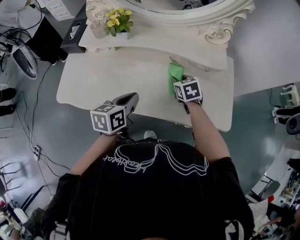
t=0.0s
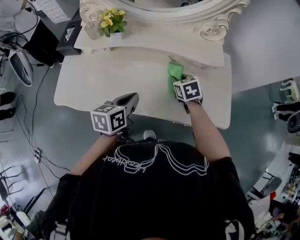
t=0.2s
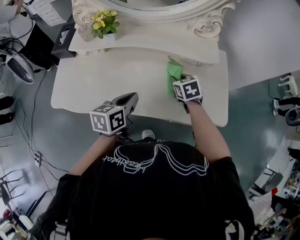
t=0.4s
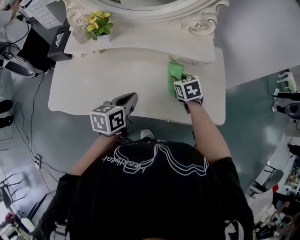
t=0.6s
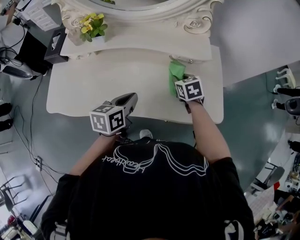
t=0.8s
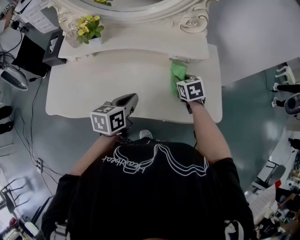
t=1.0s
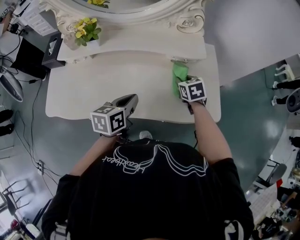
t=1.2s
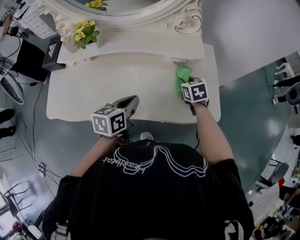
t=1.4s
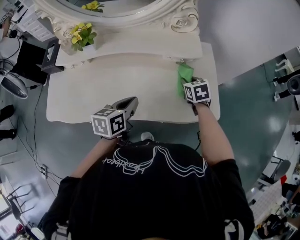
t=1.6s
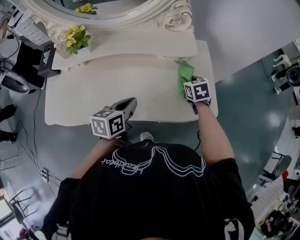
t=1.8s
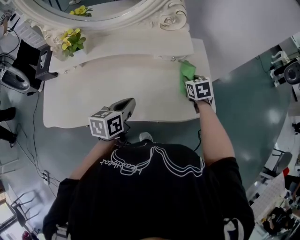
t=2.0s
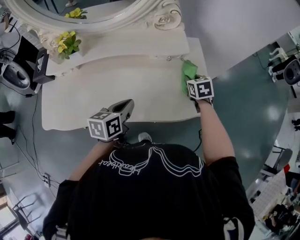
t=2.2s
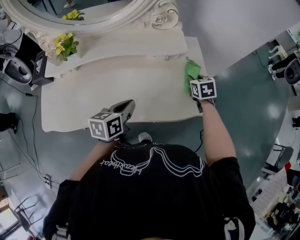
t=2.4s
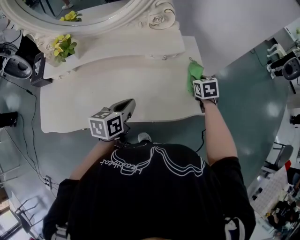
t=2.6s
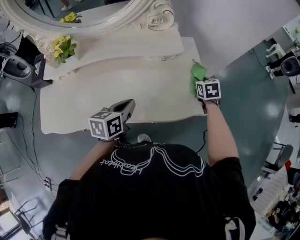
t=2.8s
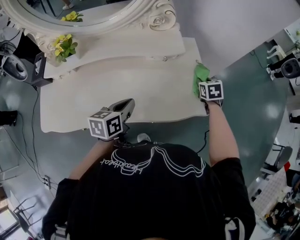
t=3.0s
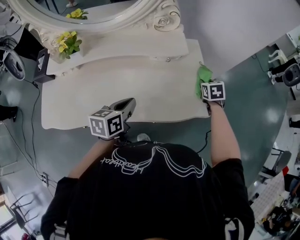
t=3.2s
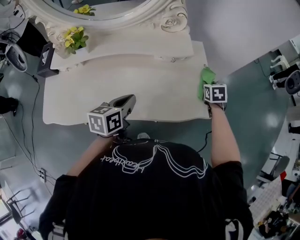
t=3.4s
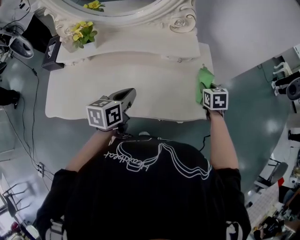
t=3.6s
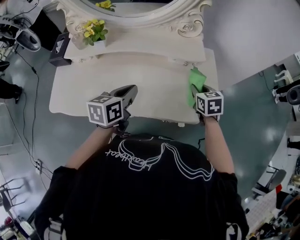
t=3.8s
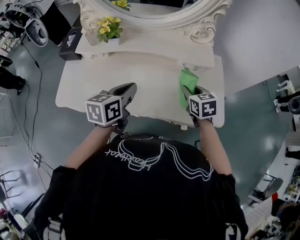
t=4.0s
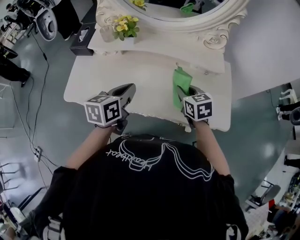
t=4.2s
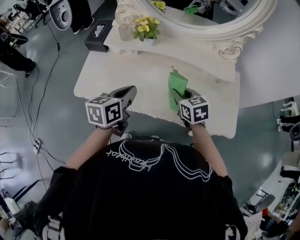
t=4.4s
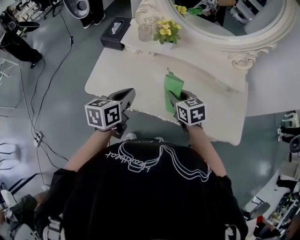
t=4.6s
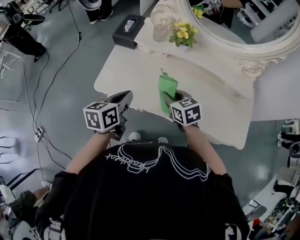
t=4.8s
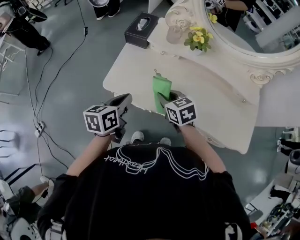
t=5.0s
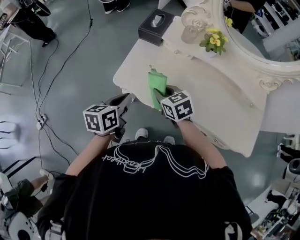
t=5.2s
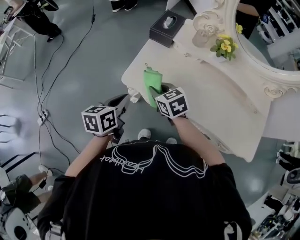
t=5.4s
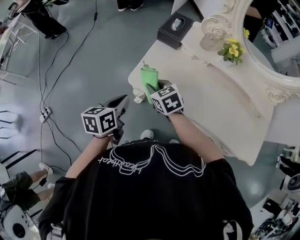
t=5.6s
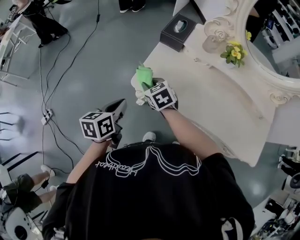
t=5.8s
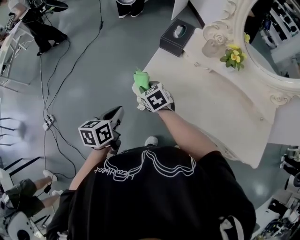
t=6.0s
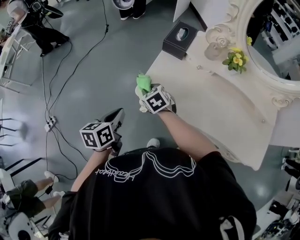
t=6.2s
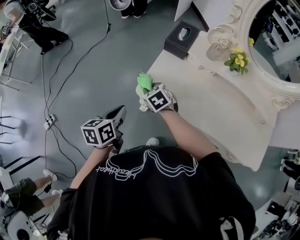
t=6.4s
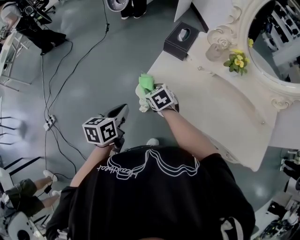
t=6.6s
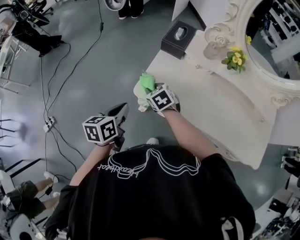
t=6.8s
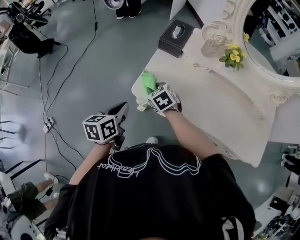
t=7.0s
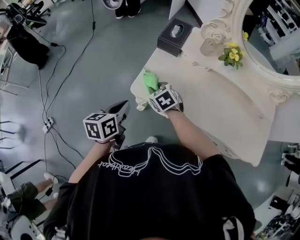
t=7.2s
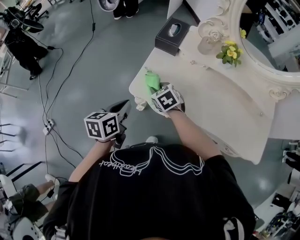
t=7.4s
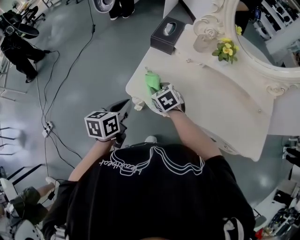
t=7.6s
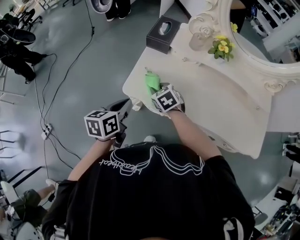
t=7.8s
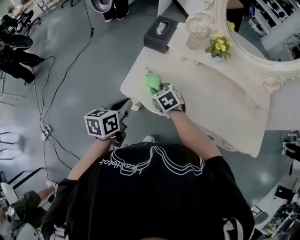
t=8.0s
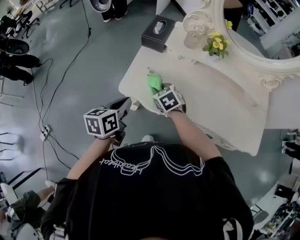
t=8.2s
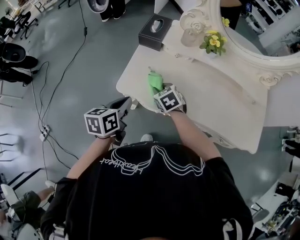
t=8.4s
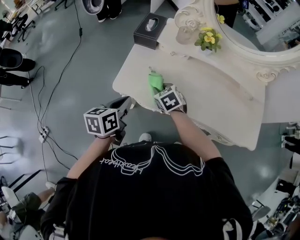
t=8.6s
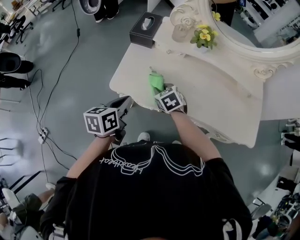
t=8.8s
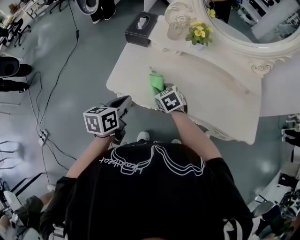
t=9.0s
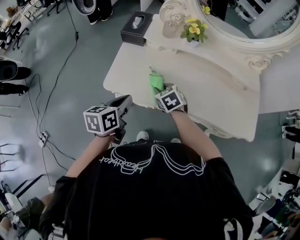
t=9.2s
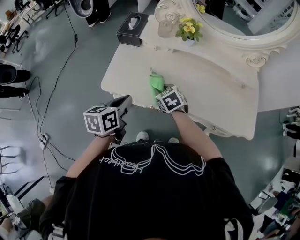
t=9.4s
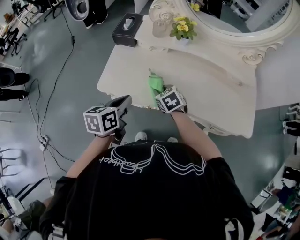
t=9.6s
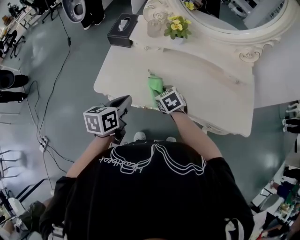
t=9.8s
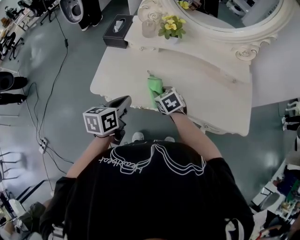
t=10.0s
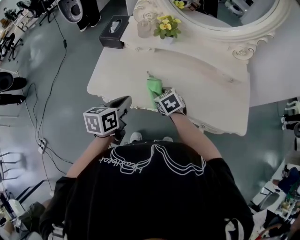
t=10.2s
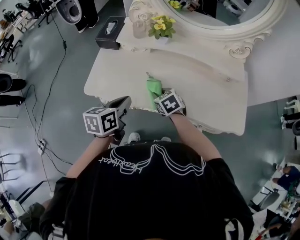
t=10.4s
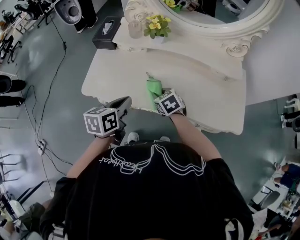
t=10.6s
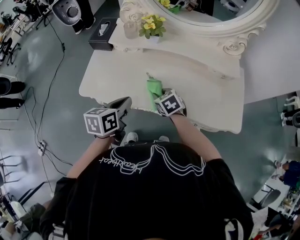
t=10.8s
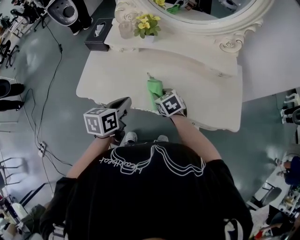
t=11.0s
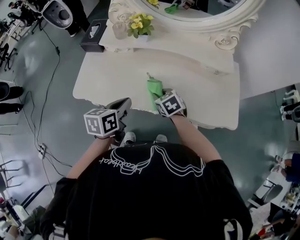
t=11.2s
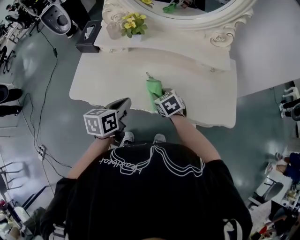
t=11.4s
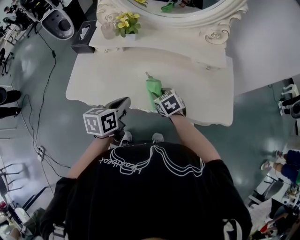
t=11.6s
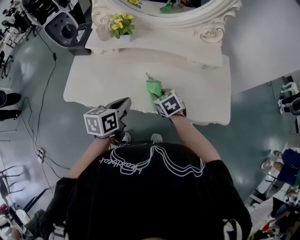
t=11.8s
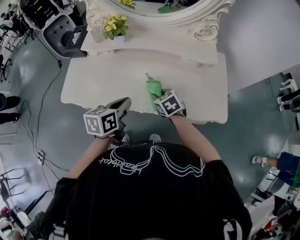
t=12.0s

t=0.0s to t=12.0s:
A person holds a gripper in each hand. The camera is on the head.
t=0.0s to t=1.6s: The left gripper goes some 10 cm to the right, while the right gripper goes about 15 cm to the right.
t=1.6s to t=3.0s: The right gripper is displaced to the right by about 15 cm.
t=3.0s to t=4.4s: The right gripper changes place by roughly 40 cm, and swivels roughly 40 degrees. The left gripper ends up approximately 25 cm from where it was.
t=4.4s to t=6.0s: The right gripper changes place by roughly 50 cm, and turns by roughly 30 degrees. Meanwhile the left gripper ends up some 40 cm from where it was, and swivels some 30 degrees.
t=6.0s to t=7.6s: Both grippers travel together to the right, approximately 5 cm.
t=7.6s to t=9.0s: Both grippers travel together to the right, approximately 10 cm.
t=9.0s to t=10.4s: The two grippers go approximately 15 cm to the right.
t=10.4s to t=12.0s: Both grippers travel together to the right, about 15 cm.

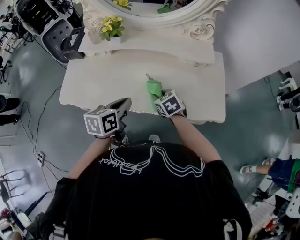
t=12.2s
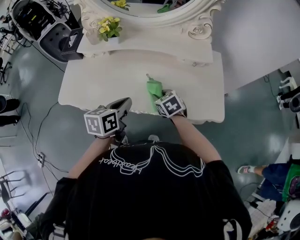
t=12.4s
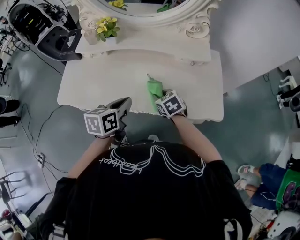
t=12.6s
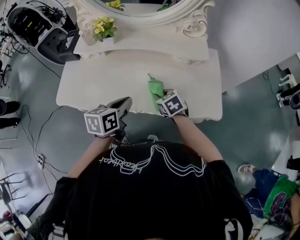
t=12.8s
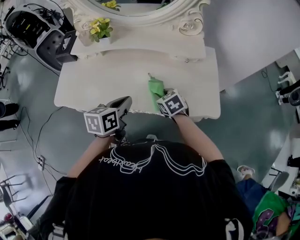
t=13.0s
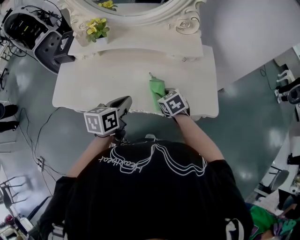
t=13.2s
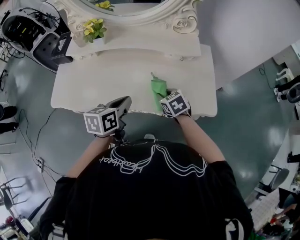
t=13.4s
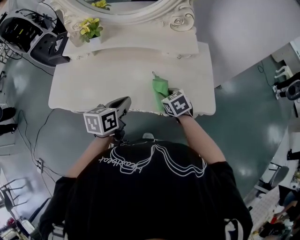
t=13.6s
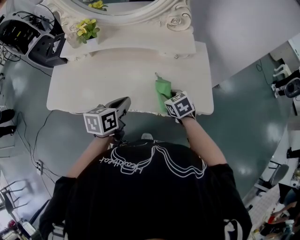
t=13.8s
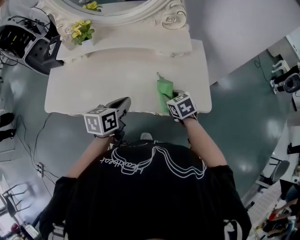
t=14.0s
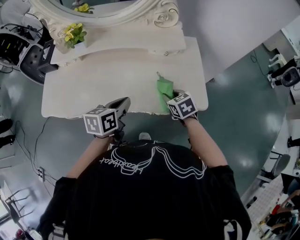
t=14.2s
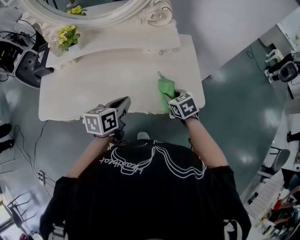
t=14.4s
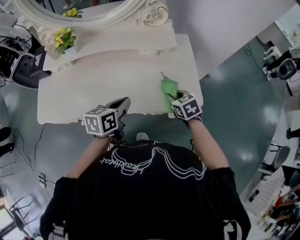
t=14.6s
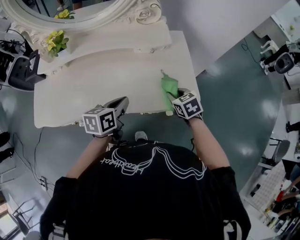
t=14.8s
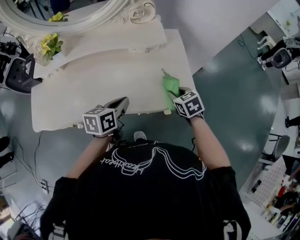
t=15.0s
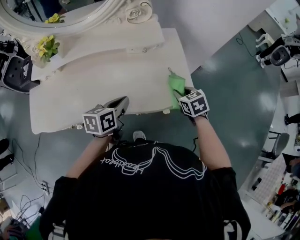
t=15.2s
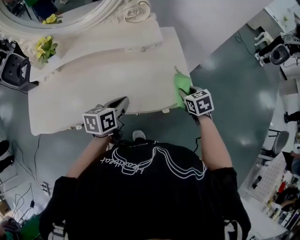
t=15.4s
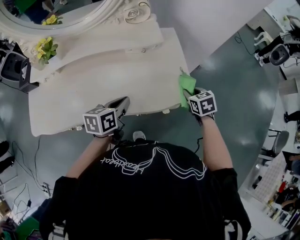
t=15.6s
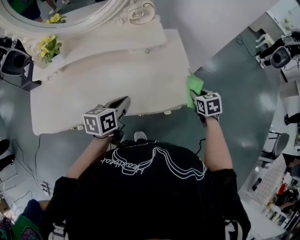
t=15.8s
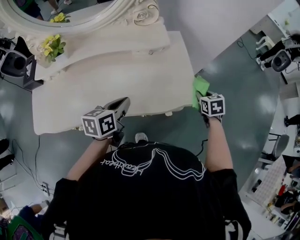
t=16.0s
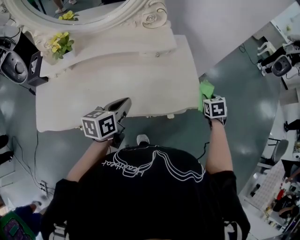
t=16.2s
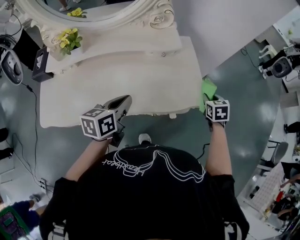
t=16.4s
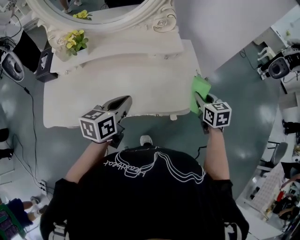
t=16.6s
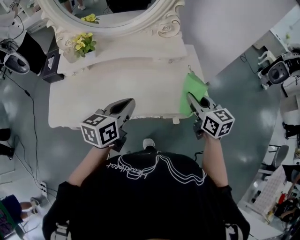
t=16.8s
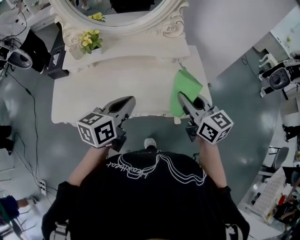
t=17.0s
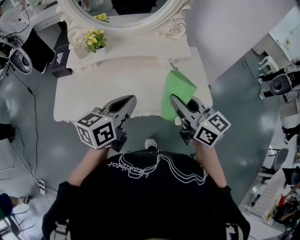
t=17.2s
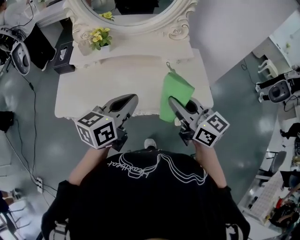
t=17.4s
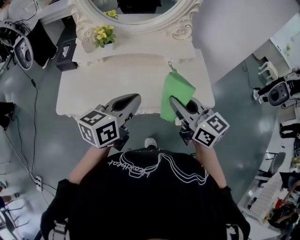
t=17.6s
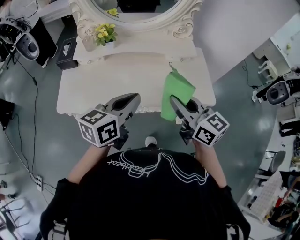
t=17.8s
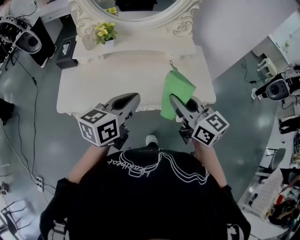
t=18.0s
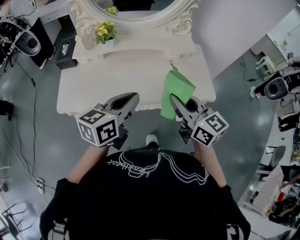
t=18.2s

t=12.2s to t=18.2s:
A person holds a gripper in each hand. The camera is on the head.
t=12.2s to t=13.8s: The left gripper goes some 10 cm to the right, while the right gripper moves to the right, about 15 cm.
t=13.8s to t=15.2s: The left gripper heads to the right, covering about 10 cm. The right gripper moves to the right, about 20 cm.
t=15.2s to t=16.6s: The right gripper is displaced upward by approximately 10 cm, and goes to the right and returns, about 10 cm each way, while the left gripper shifts roughly 10 cm upward and to the left.
t=16.6s to t=18.2s: The right gripper heads to the left, upward and backward, covering some 35 cm, and tips its fingers upward by about 30 degrees. Meanwhile the left gripper heads backward, upward and to the left, covering some 15 cm.

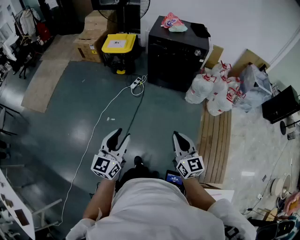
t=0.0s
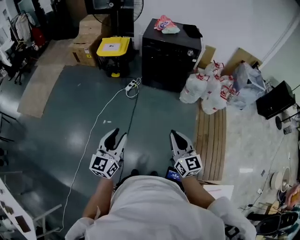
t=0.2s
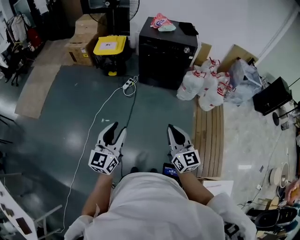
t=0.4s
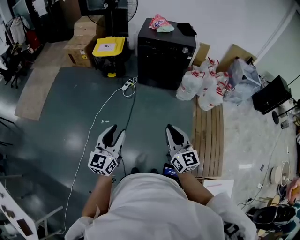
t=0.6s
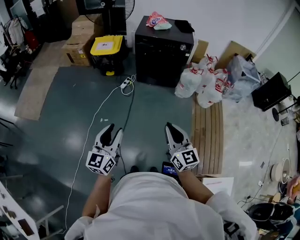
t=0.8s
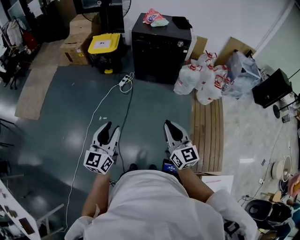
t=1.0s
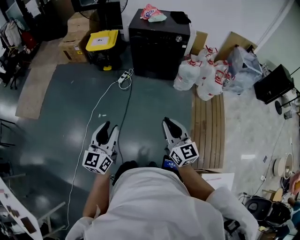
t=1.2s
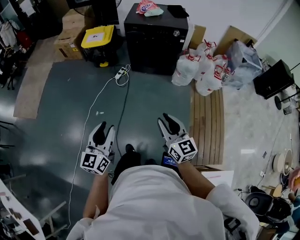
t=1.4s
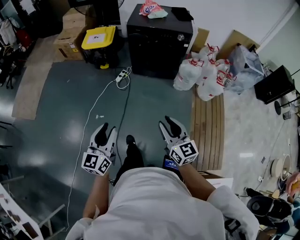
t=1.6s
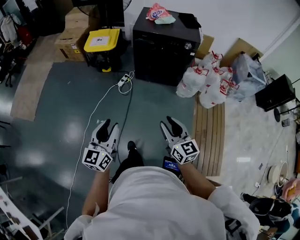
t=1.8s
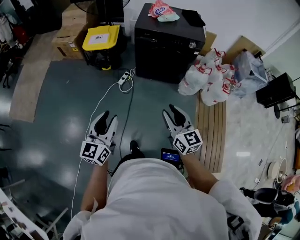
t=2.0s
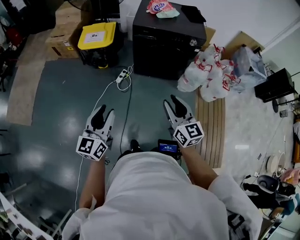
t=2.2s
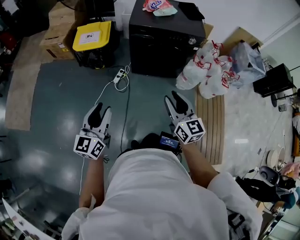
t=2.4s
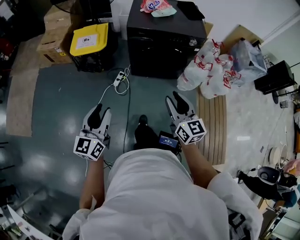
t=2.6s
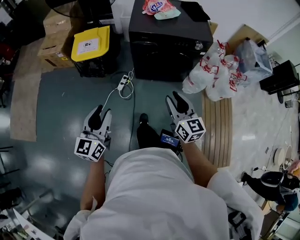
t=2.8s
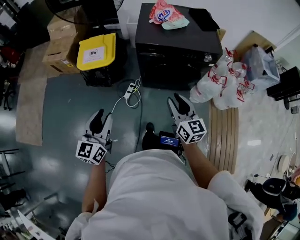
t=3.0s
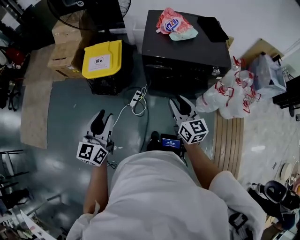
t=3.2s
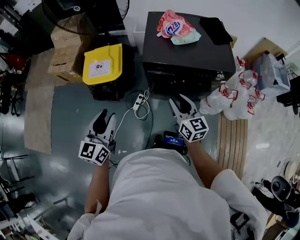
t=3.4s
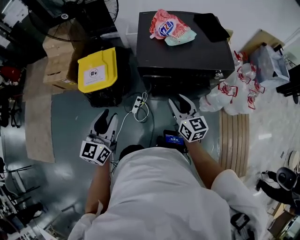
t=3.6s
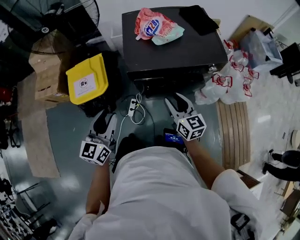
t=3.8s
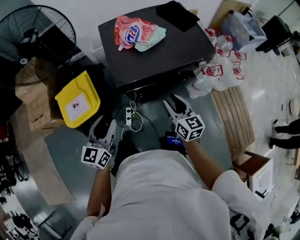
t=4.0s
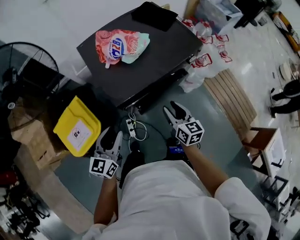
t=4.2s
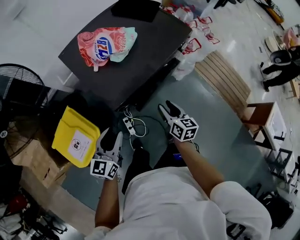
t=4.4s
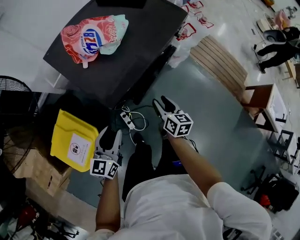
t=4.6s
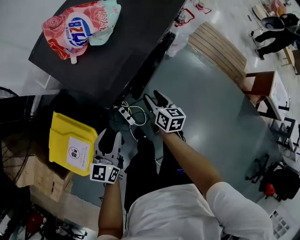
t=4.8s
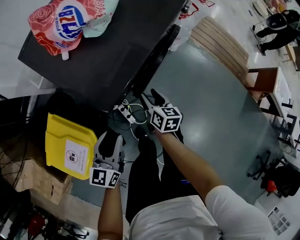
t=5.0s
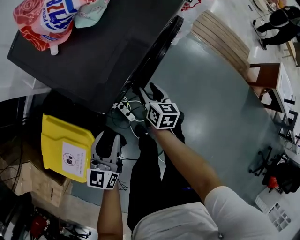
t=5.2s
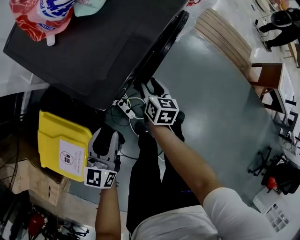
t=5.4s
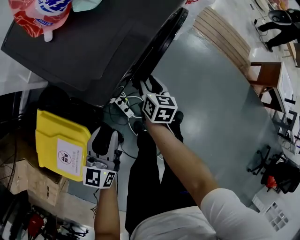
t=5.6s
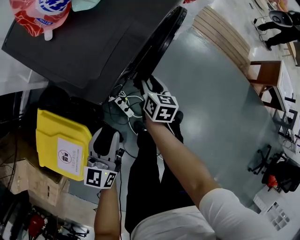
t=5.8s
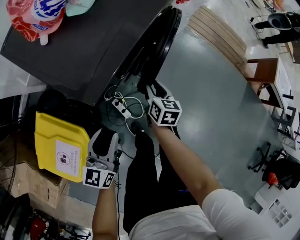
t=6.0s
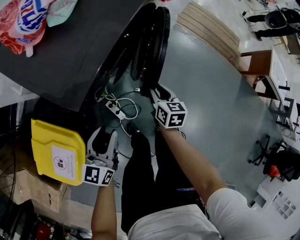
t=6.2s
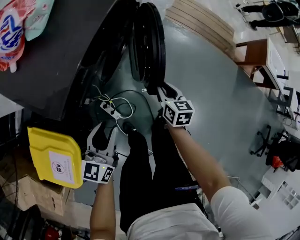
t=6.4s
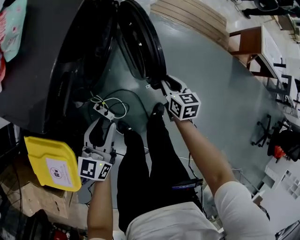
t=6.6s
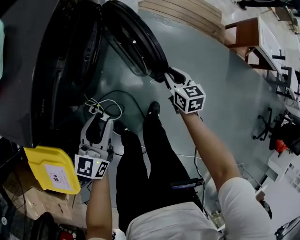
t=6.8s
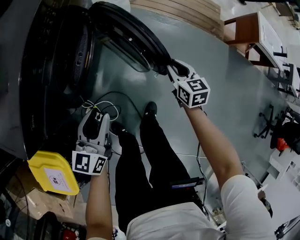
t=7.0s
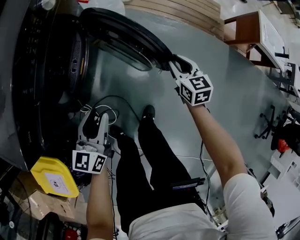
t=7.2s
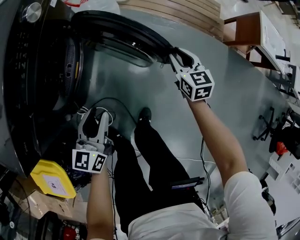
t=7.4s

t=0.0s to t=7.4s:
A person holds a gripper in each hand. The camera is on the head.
t=0.0s to t=1.4s: There are only small adjustments of the grippers.
t=1.4s to t=3.0s: The two grippers travel together, forward, roughly 50 cm.
t=3.0s to t=4.4s: The right gripper ends up some 30 cm from where it was, and swivels roughly 60 degrees, while the left gripper shifts by roughly 40 cm, and turns by roughly 50 degrees.
t=4.4s to t=6.0s: The grippers both shift downward by about 20 cm. The right gripper rotates approximately 30 degrees.
t=6.0s to t=7.4s: Both grippers travel together to the right and forward, about 40 cm.
